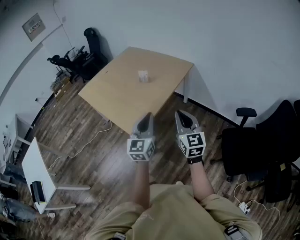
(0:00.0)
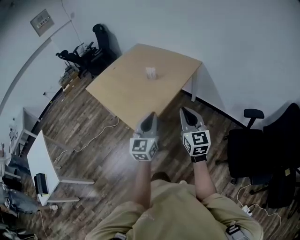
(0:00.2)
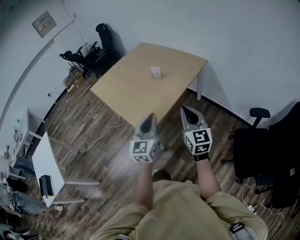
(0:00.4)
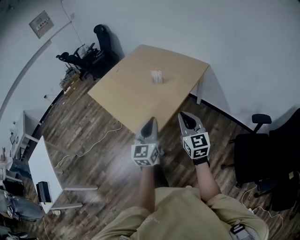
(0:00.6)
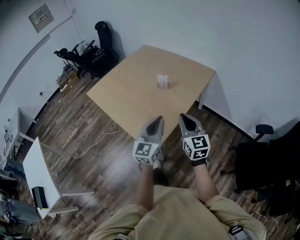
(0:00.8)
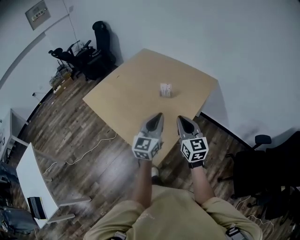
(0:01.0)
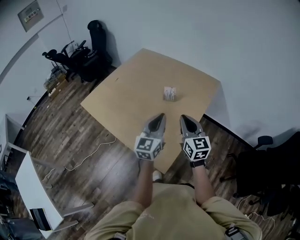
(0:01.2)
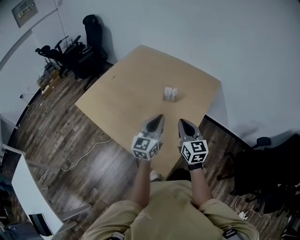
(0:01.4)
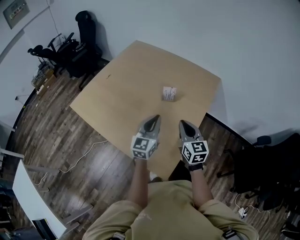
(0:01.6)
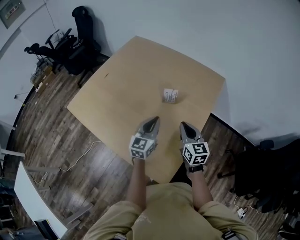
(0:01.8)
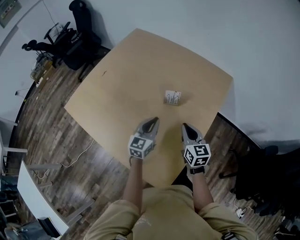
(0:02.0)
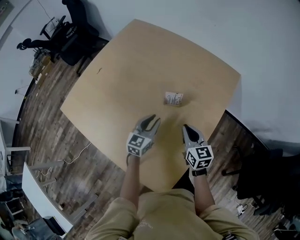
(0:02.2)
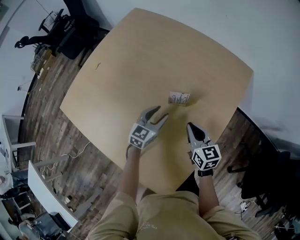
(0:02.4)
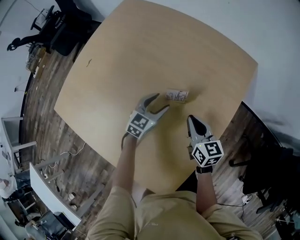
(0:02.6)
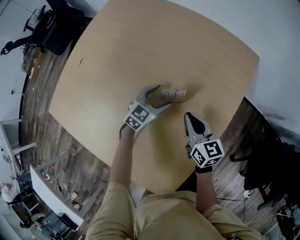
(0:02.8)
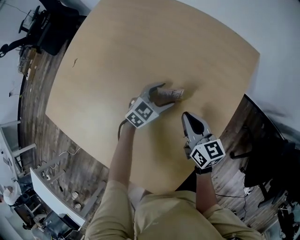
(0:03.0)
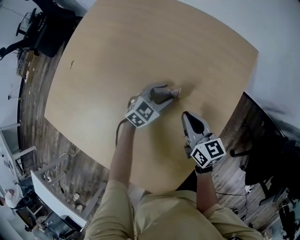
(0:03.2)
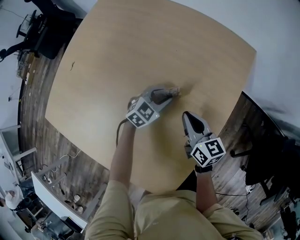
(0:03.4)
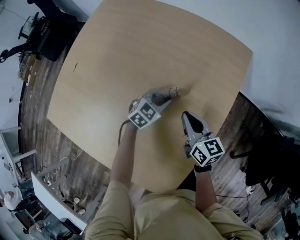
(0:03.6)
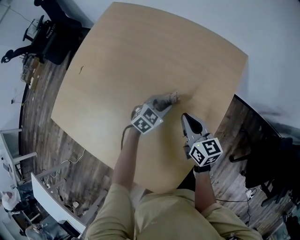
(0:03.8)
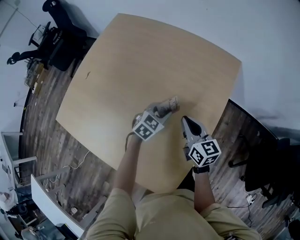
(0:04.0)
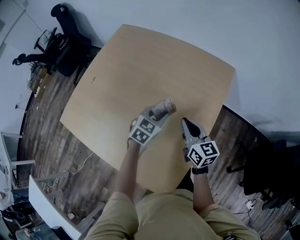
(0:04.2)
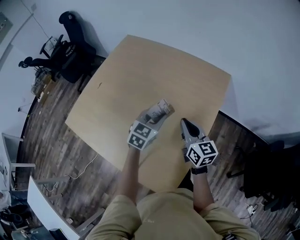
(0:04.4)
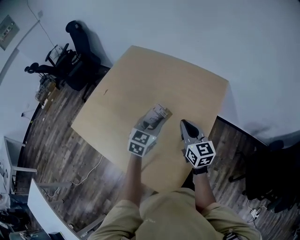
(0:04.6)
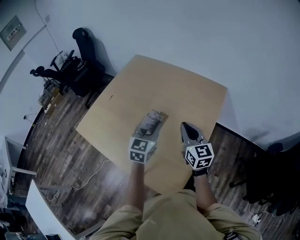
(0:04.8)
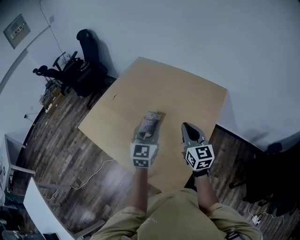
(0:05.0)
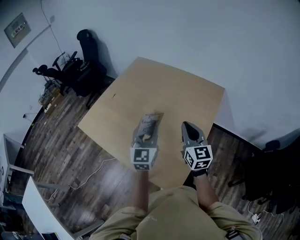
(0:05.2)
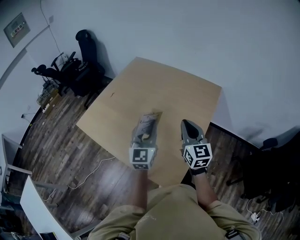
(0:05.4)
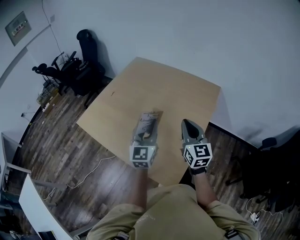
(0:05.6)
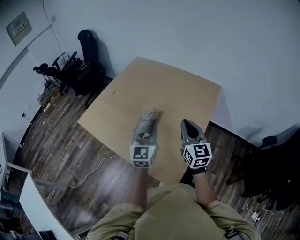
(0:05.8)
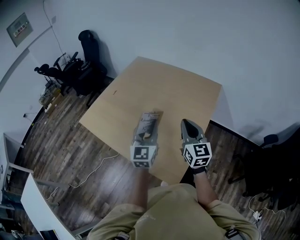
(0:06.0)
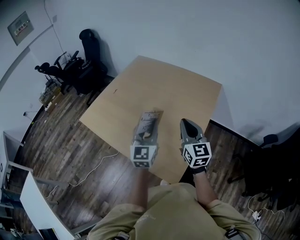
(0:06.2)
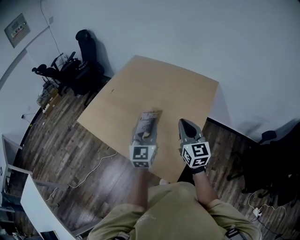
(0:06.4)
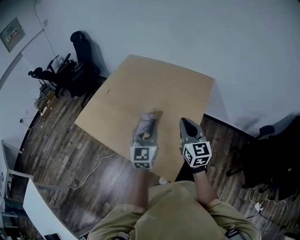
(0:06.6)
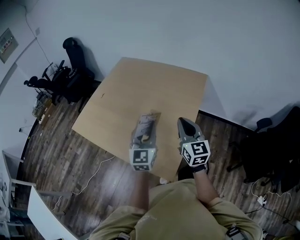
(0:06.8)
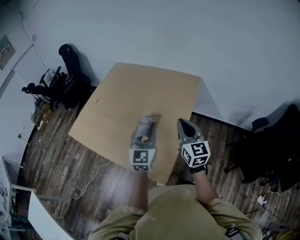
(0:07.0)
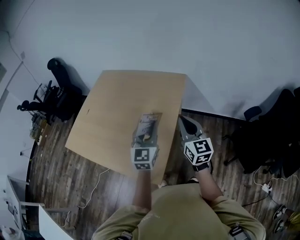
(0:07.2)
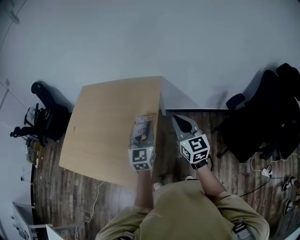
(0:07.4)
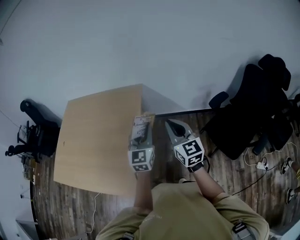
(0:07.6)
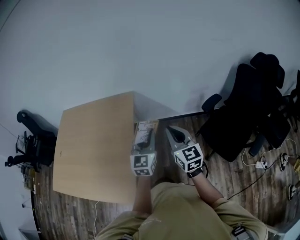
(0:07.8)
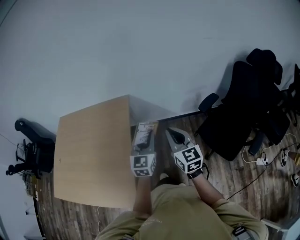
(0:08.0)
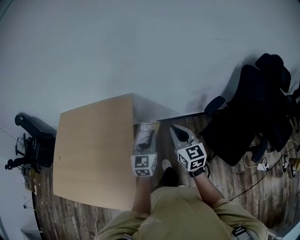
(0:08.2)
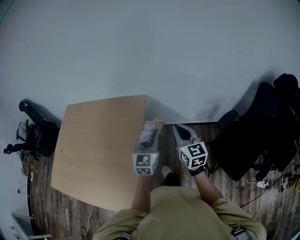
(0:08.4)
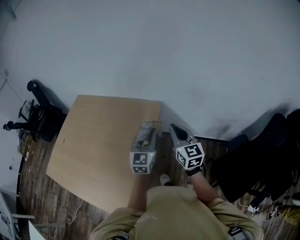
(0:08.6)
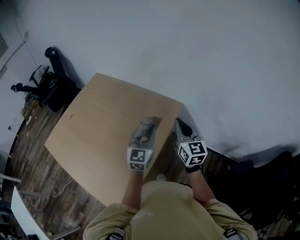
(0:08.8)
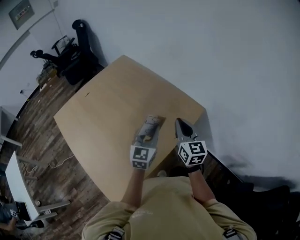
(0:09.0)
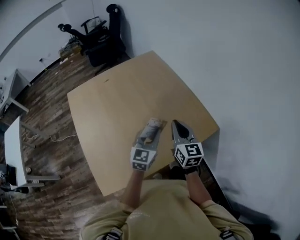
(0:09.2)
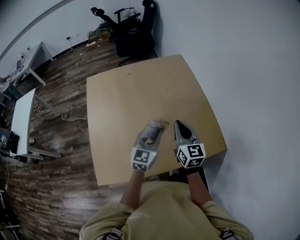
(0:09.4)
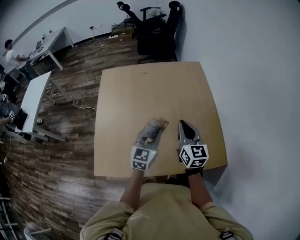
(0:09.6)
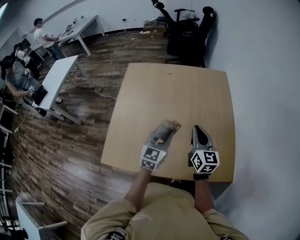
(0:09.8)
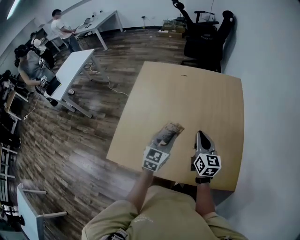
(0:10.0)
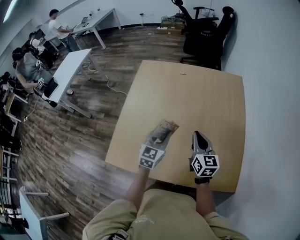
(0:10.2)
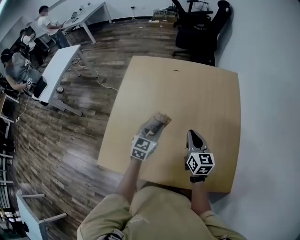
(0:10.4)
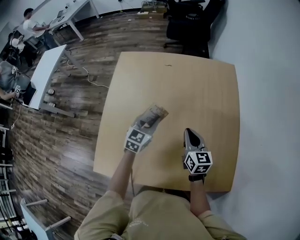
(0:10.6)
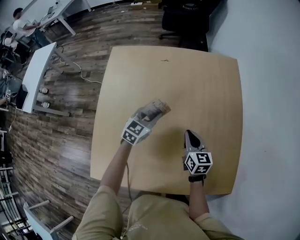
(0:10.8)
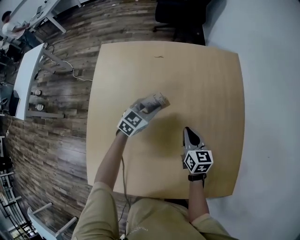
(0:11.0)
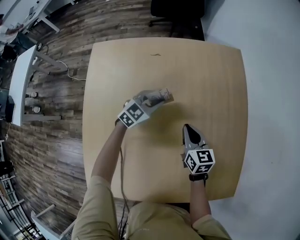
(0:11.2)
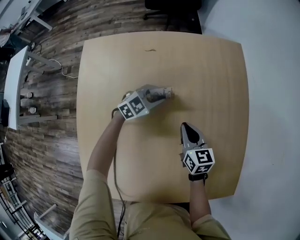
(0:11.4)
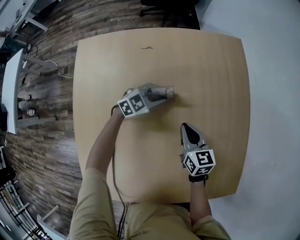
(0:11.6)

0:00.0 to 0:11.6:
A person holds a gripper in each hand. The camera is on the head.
0:00.0 to 0:01.4: The pair of grippers is taken forward and to the left, about 40 cm.
0:01.4 to 0:02.8: Both grippers travel together forward and downward, some 50 cm. The right gripper rotates some 30 degrees. The left gripper tips its fingers downward by about 30 degrees, and opens its fingers.
0:02.8 to 0:04.4: The grippers both shift upward and backward by approximately 20 cm. The left gripper closes.
0:04.4 to 0:05.8: The right gripper heads backward and upward, covering some 20 cm, and swivels roughly 20 degrees. Meanwhile the left gripper goes about 30 cm backward, upward and to the left, and swivels roughly 40 degrees.
0:05.8 to 0:07.2: The two grippers go about 20 cm to the right.
0:07.2 to 0:08.8: The right gripper changes place by about 35 cm, while the left gripper shifts by some 30 cm.
0:08.8 to 0:10.2: The right gripper changes place by about 40 cm, and swivels roughly 70 degrees. Meanwhile the left gripper ends up about 30 cm from where it was, and swivels approximately 60 degrees.
0:10.2 to 0:11.6: The right gripper ends up roughly 30 cm from where it was, while the left gripper ends up approximately 40 cm from where it was, and swivels some 60 degrees.

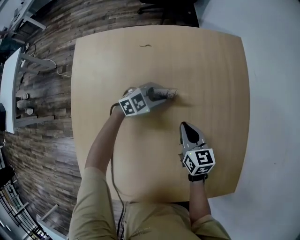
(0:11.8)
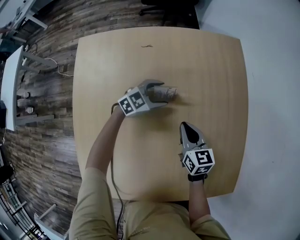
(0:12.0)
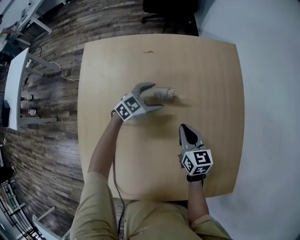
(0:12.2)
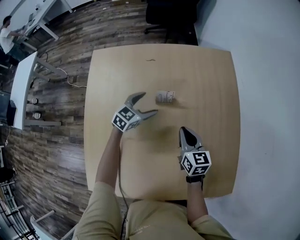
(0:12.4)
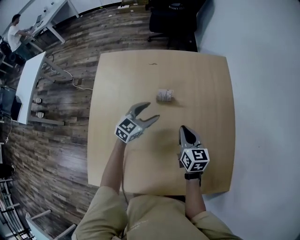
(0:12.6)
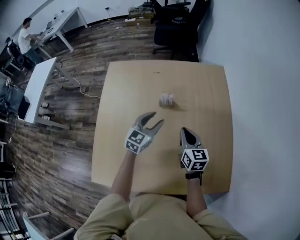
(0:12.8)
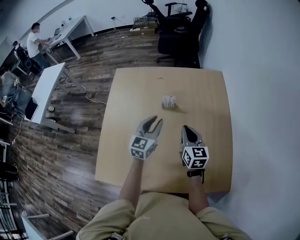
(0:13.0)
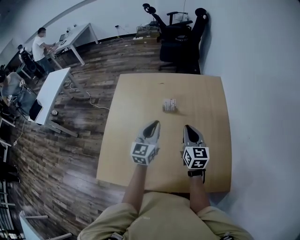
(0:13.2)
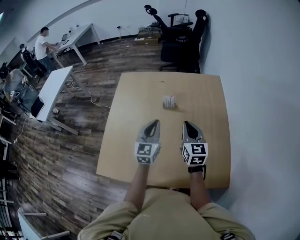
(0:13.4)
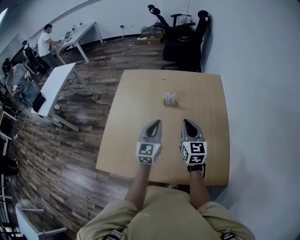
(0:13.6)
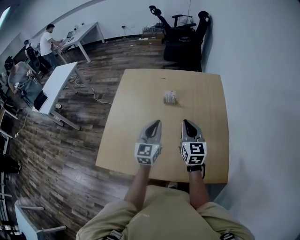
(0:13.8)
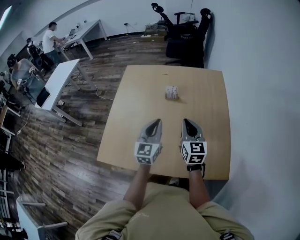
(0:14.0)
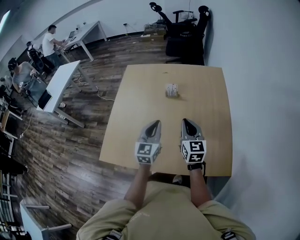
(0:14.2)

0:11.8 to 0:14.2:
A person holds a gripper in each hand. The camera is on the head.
0:11.8 to 0:13.0: Both grippers move upward, approximately 25 cm. The left gripper turns by roughly 60 degrees, and opens and closes again.
0:13.0 to 0:14.2: Both grippers move backward, about 15 cm.

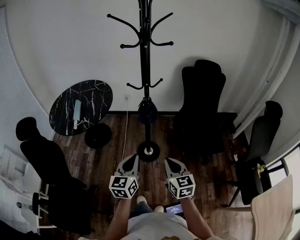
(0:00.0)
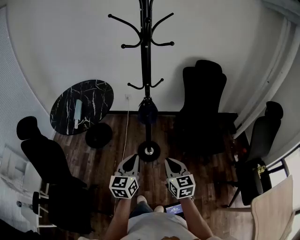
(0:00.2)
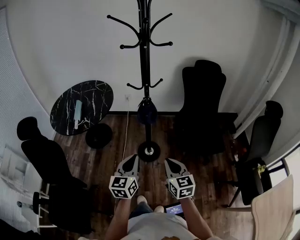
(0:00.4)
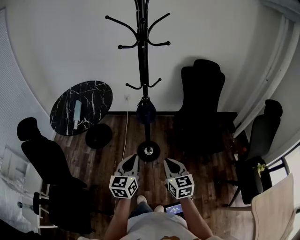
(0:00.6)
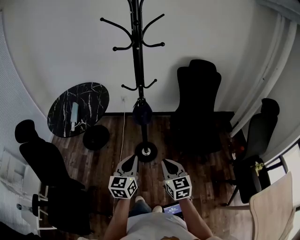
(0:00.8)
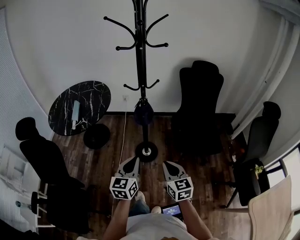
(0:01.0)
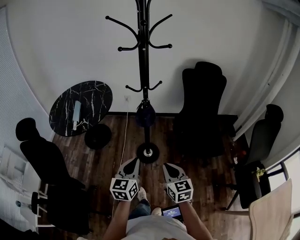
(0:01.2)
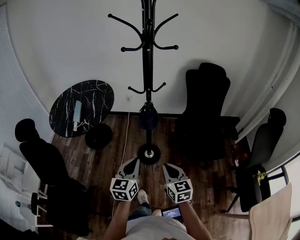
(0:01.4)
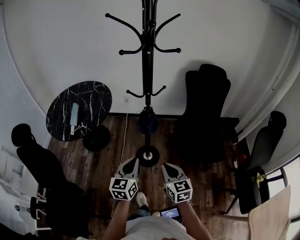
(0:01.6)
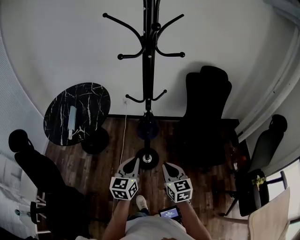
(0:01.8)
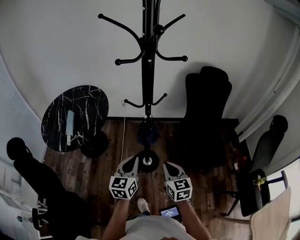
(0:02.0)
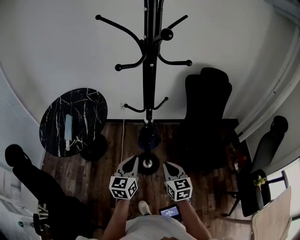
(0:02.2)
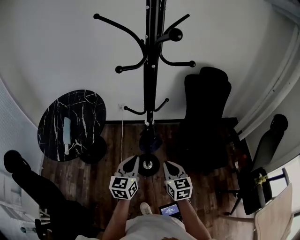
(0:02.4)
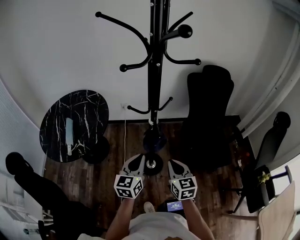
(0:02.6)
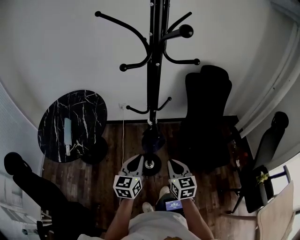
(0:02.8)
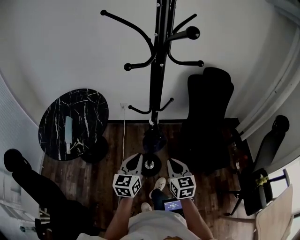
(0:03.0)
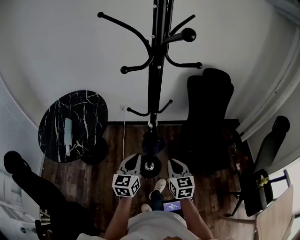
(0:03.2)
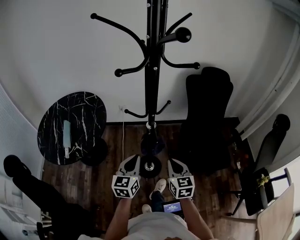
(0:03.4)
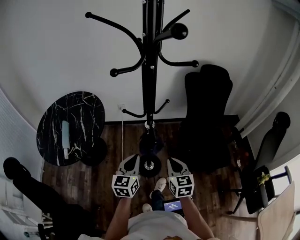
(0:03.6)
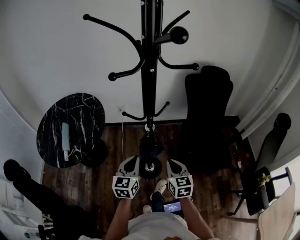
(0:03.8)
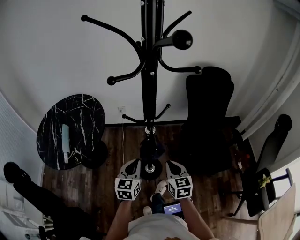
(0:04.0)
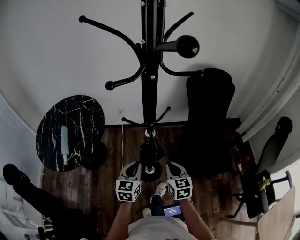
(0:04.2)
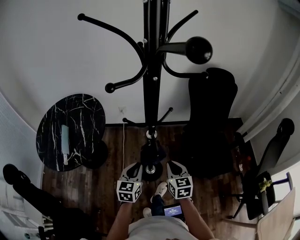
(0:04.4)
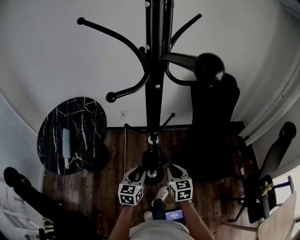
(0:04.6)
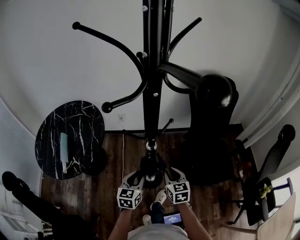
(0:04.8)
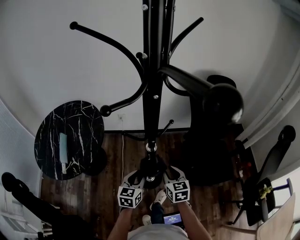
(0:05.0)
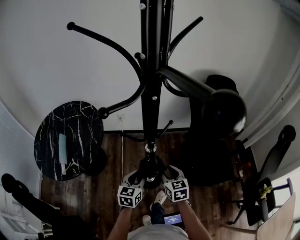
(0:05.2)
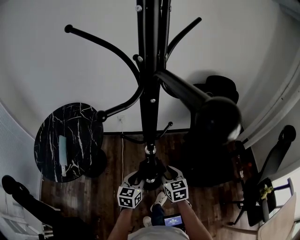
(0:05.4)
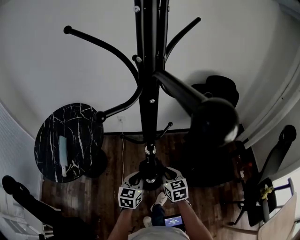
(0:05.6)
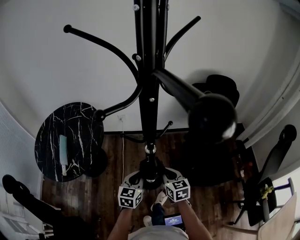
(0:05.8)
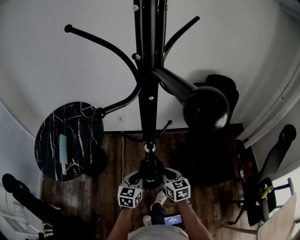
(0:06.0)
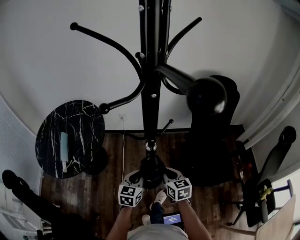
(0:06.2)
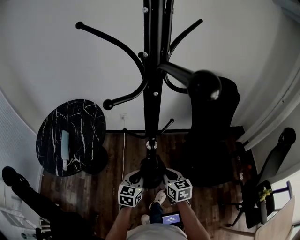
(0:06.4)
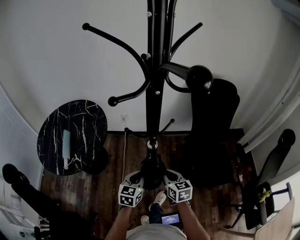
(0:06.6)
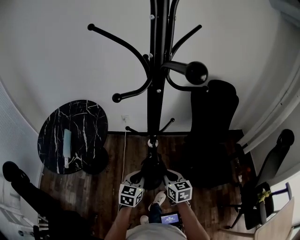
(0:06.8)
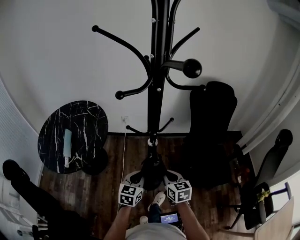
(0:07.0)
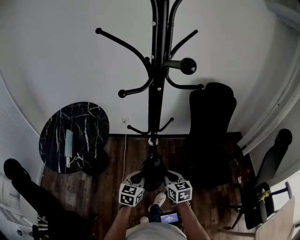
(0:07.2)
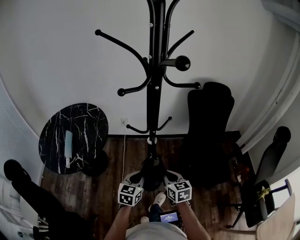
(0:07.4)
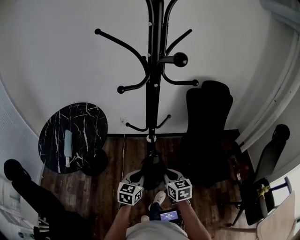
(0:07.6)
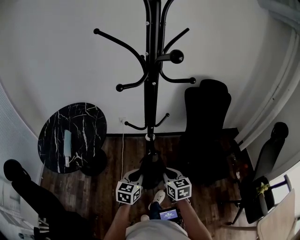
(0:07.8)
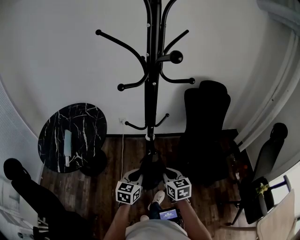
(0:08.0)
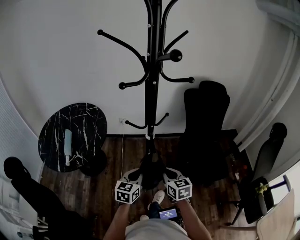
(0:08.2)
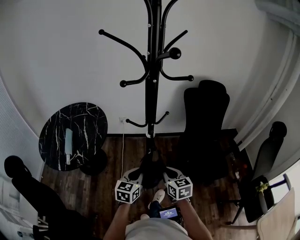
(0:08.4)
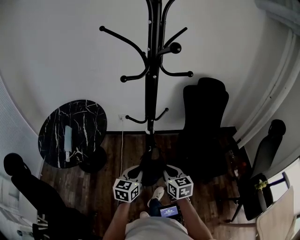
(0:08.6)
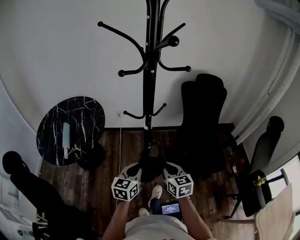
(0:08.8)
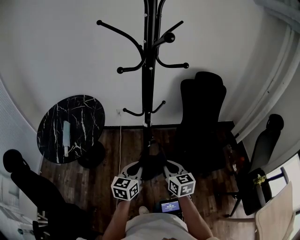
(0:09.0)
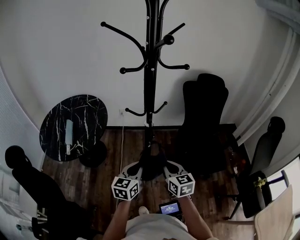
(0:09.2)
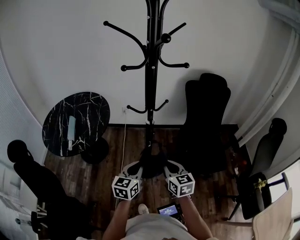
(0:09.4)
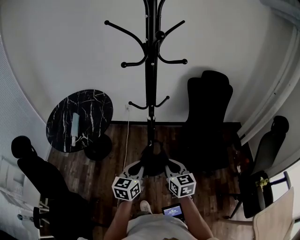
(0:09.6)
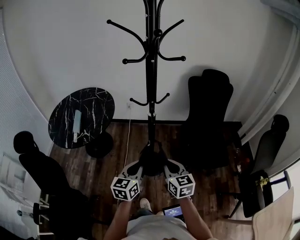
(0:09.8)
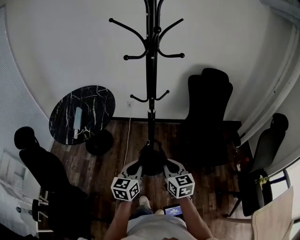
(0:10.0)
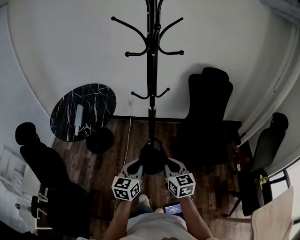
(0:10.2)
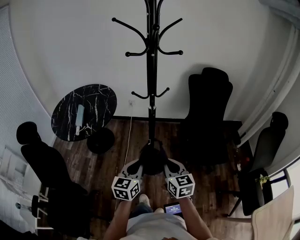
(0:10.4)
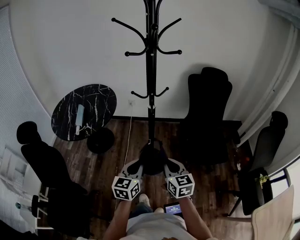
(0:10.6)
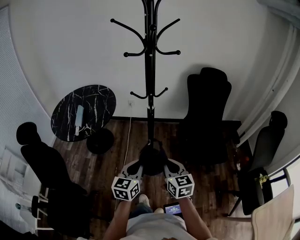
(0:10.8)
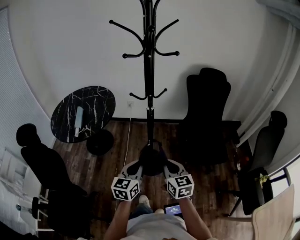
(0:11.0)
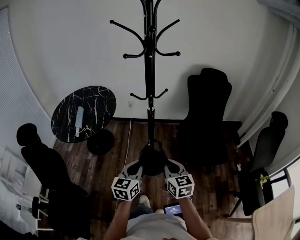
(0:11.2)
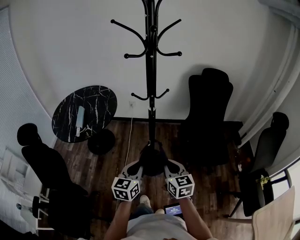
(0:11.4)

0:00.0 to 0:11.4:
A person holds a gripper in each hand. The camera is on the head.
0:00.0 to 0:01.4: There are only small adjustments of the grippers.
0:01.4 to 0:02.8: Both grippers travel together forward, roughly 20 cm.
0:02.8 to 0:04.2: The right gripper goes roughly 5 cm forward, while the left gripper travels forward and downward by approximately 10 cm.
0:04.2 to 0:05.6: The right gripper is displaced forward by about 5 cm, and opens. The left gripper changes place by about 5 cm.
0:05.6 to 0:07.2: The grippers both shift backward by some 5 cm.
0:07.2 to 0:08.6: Both grippers travel together backward, about 5 cm.
0:08.6 to 0:10.0: Both grippers move backward, approximately 15 cm.
0:10.0 to 0:11.4: The grippers make only small movements.
